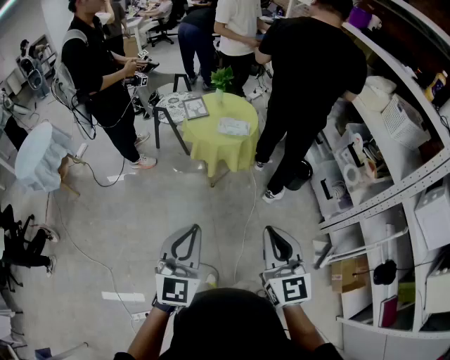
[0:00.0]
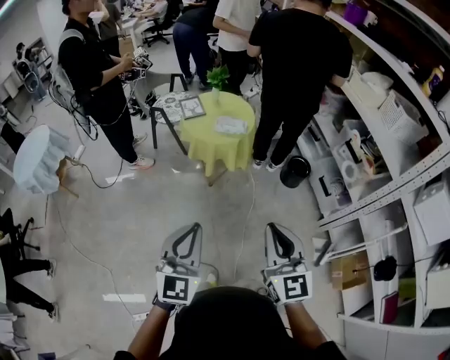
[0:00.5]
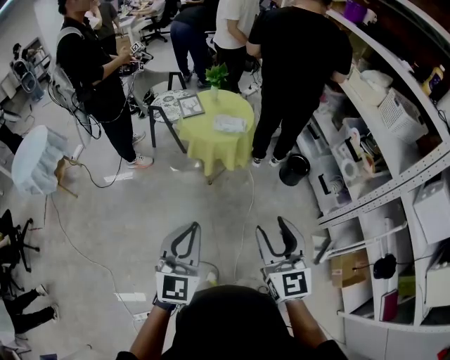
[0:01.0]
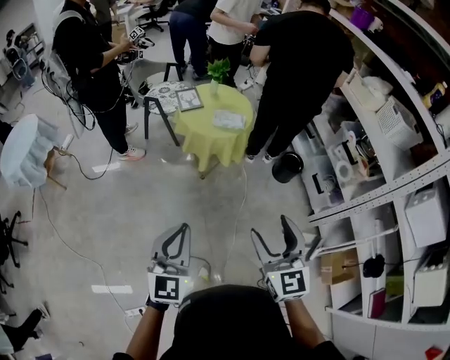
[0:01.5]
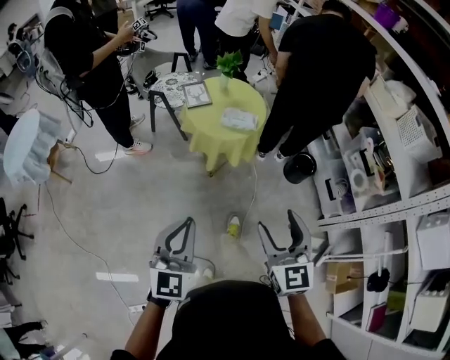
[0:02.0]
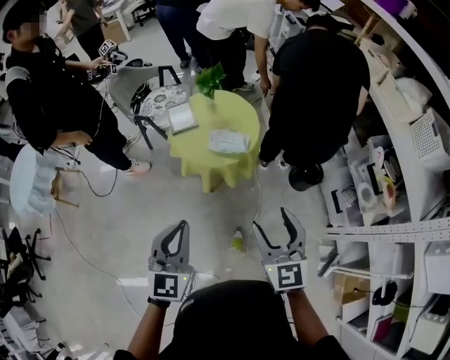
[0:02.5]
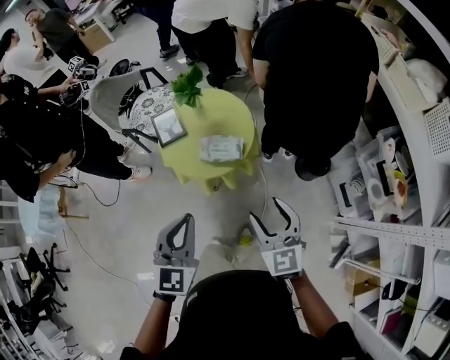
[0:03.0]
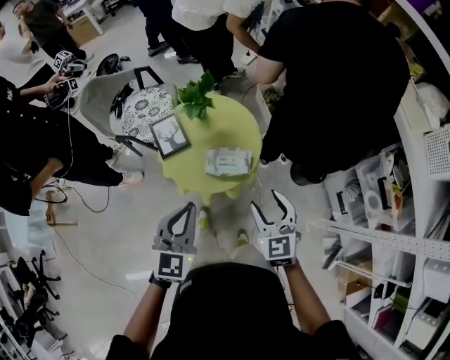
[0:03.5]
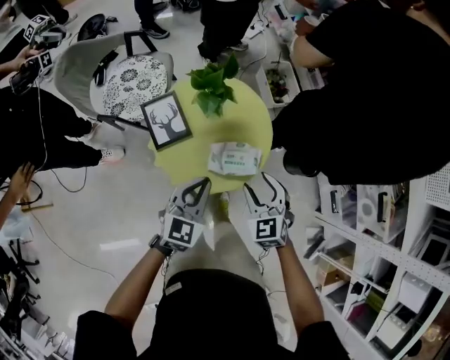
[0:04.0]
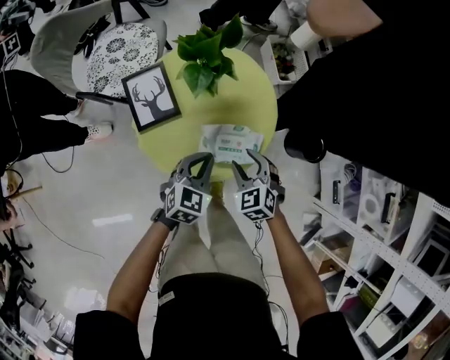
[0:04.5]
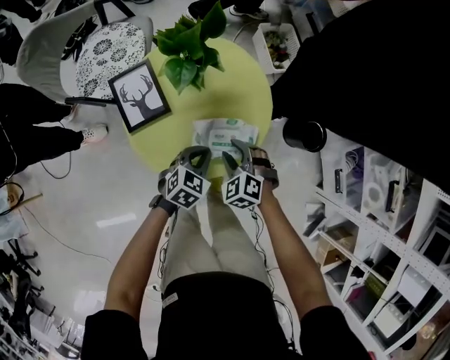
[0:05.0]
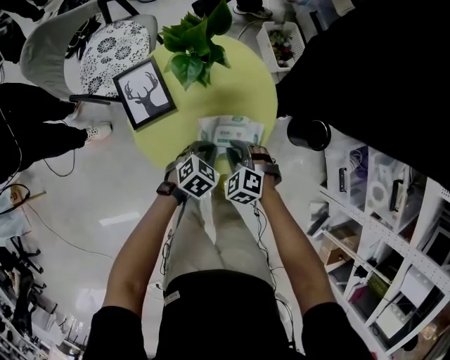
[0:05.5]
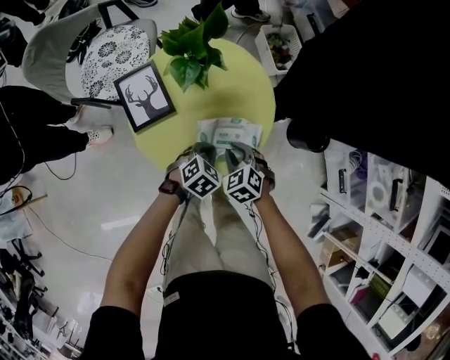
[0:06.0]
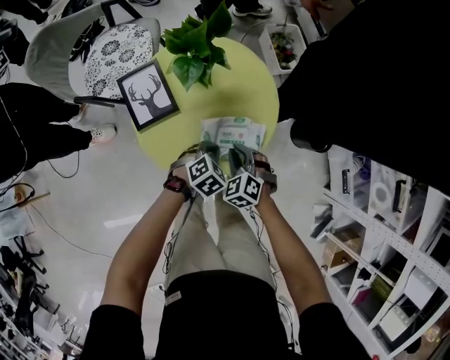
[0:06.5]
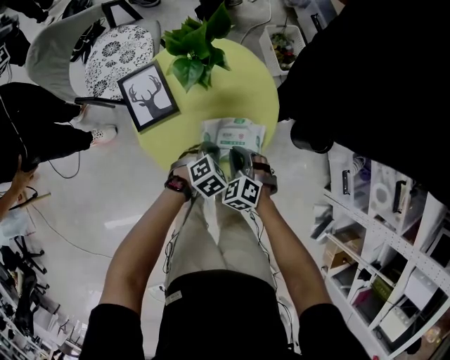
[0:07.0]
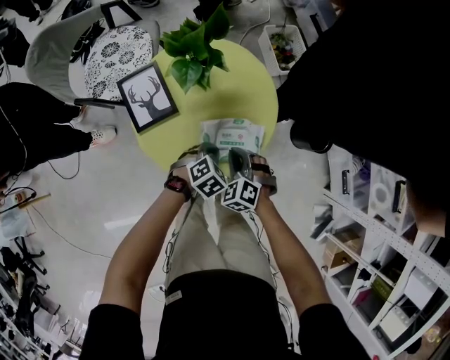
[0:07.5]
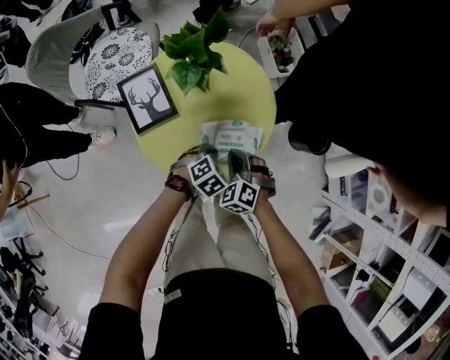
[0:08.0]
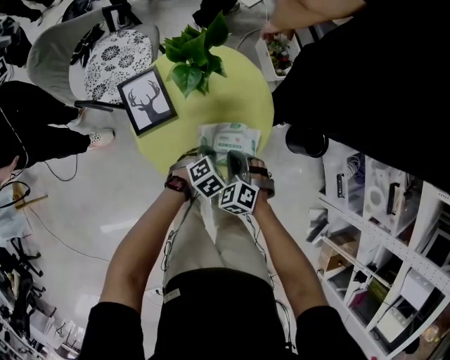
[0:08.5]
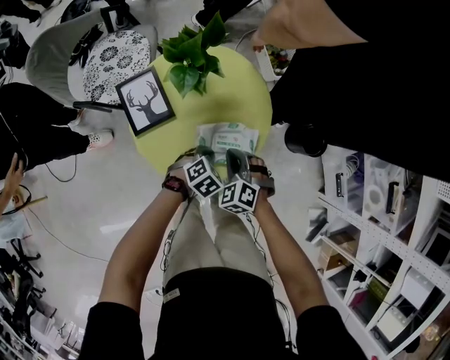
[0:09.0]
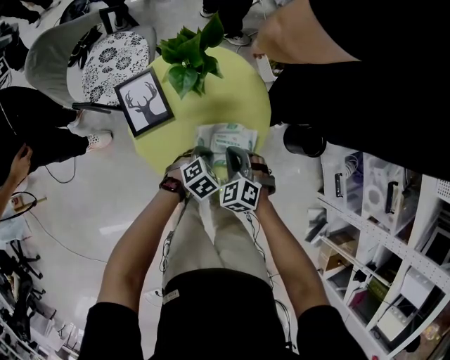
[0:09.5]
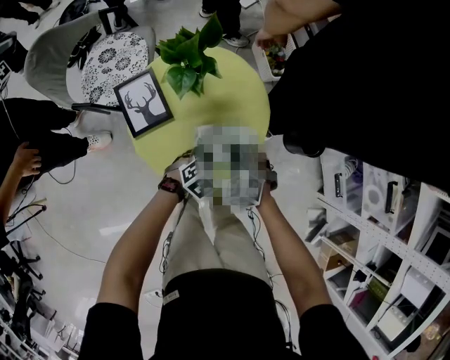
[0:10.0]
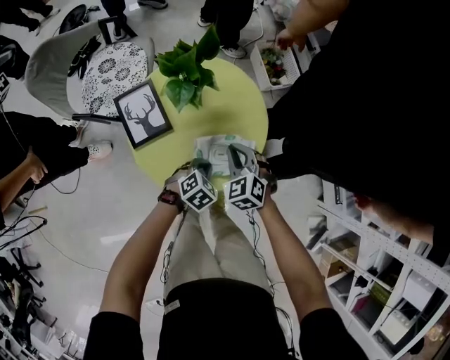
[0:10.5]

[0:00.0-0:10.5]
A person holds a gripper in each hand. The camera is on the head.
0:00.0 to 0:02.0: The left gripper shifts approximately 15 cm forward and to the left. The right gripper goes some 15 cm forward, and opens its fingers.
0:02.0 to 0:04.0: The two grippers travel together, forward, roughly 60 cm. The left gripper swivels about 30 degrees; the right gripper moves downward, about 25 cm, and swivels some 30 degrees.
0:04.0 to 0:06.5: The grippers both shift downward by about 20 cm. The left gripper tilts its fingers approximately 40 degrees downward. Meanwhile the right gripper closes up.
0:06.5 to 0:08.5: The grippers make only small movements.
0:08.5 to 0:10.5: The right gripper heads forward, covering about 5 cm.

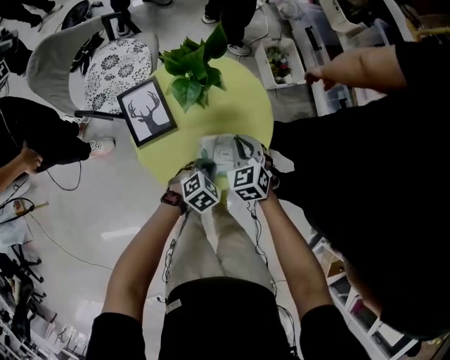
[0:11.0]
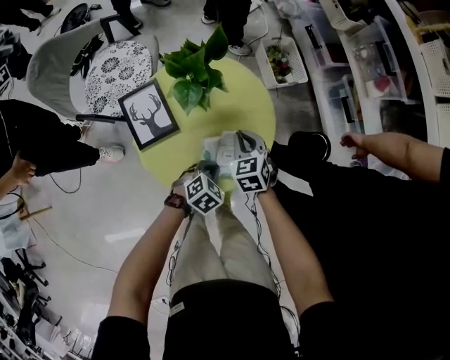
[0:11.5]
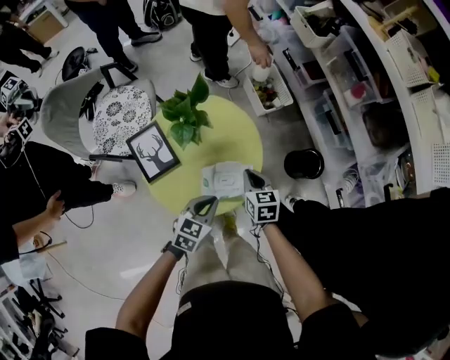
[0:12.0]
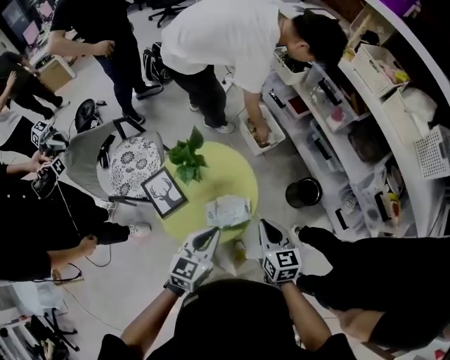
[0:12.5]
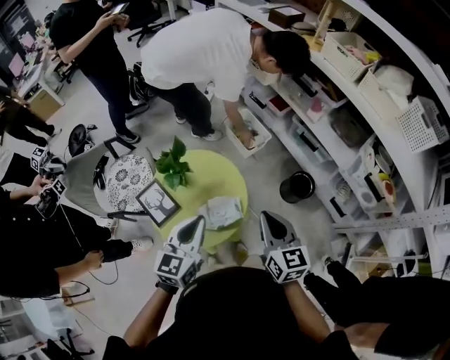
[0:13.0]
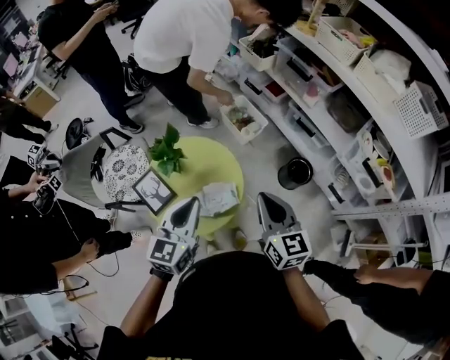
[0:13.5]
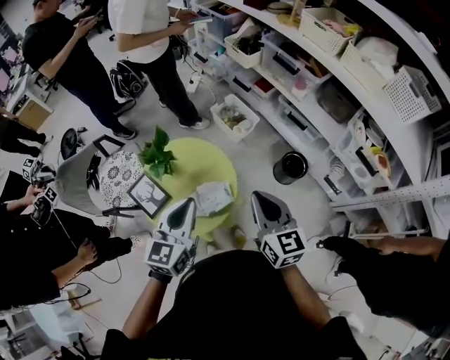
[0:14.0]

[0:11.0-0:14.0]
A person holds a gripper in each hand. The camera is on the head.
0:11.0 to 0:12.5: The left gripper shifts roughly 30 cm upward, and angles its fingers upward, by some 40 degrees, while the right gripper heads upward, to the right and backward, covering roughly 25 cm, and rotates around the line of its fingers by approximately 40 degrees, clockwise from behind.
0:12.5 to 0:14.0: The right gripper goes some 15 cm upward and to the right; the left gripper heads upward, covering about 10 cm.

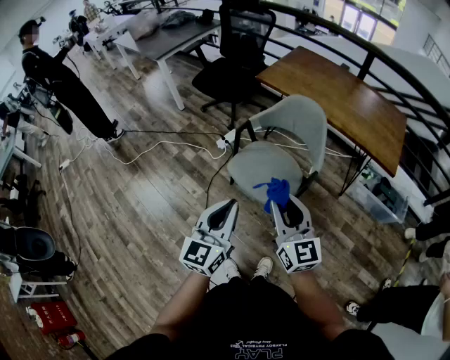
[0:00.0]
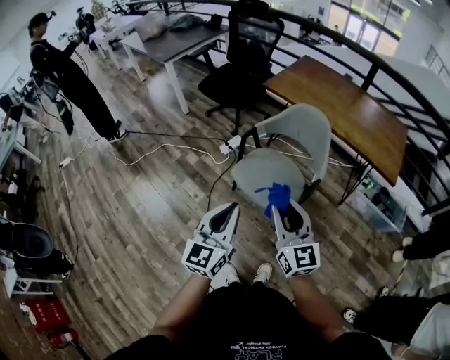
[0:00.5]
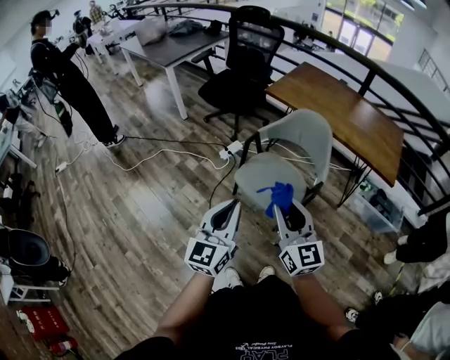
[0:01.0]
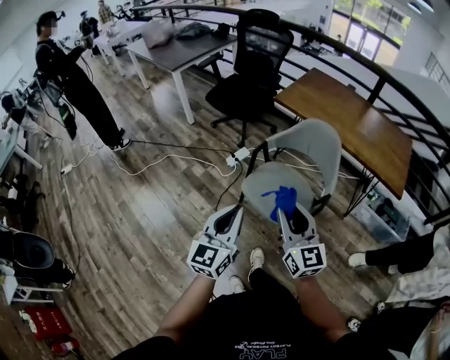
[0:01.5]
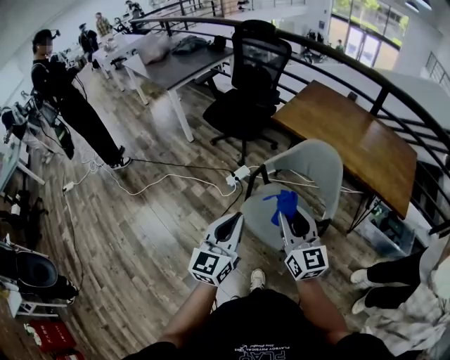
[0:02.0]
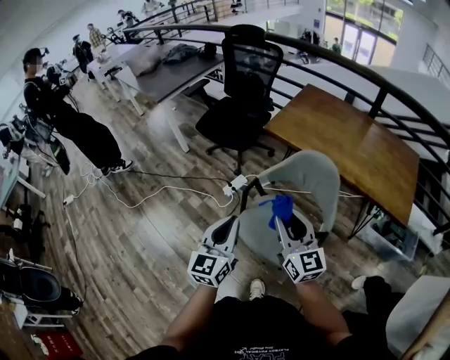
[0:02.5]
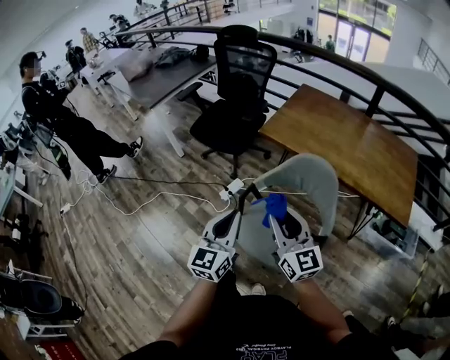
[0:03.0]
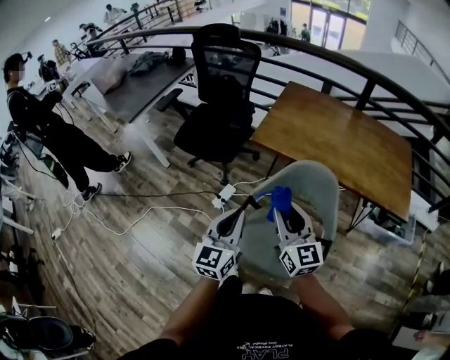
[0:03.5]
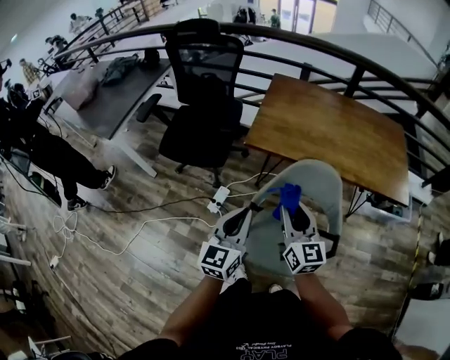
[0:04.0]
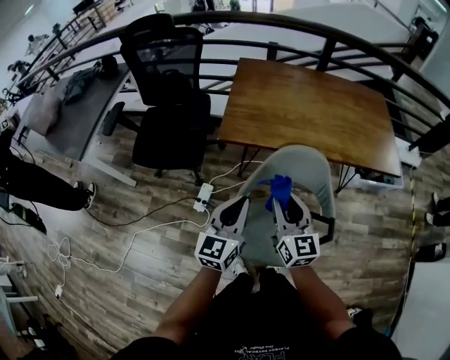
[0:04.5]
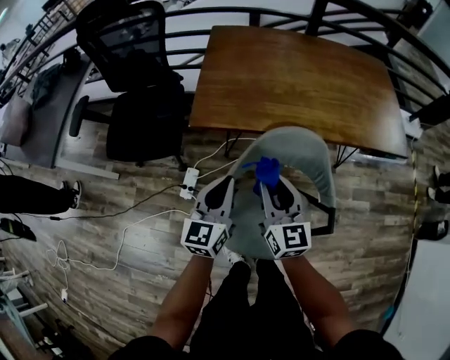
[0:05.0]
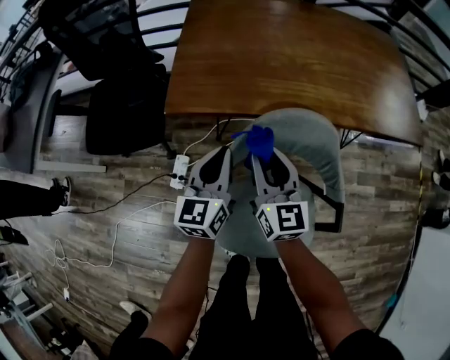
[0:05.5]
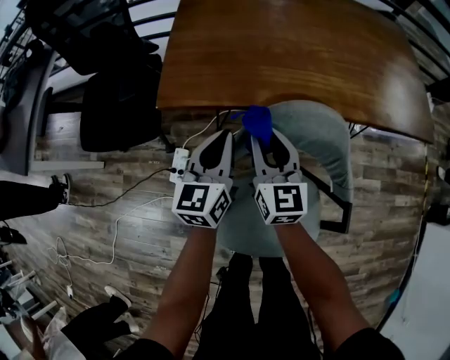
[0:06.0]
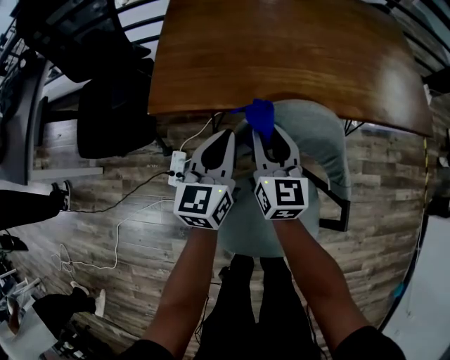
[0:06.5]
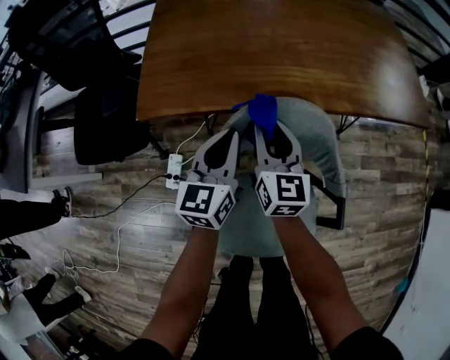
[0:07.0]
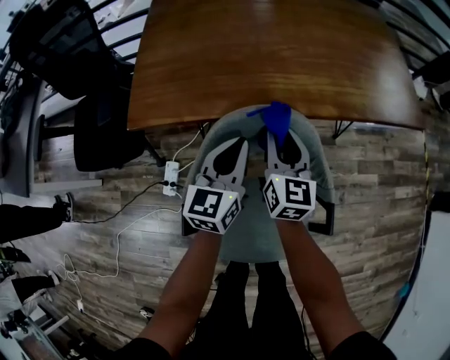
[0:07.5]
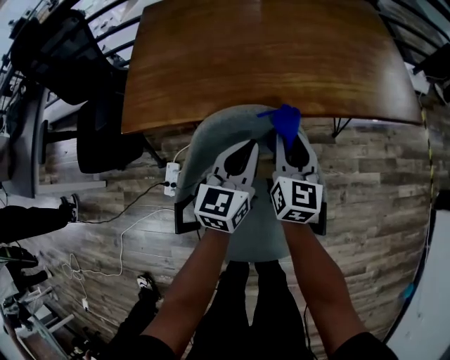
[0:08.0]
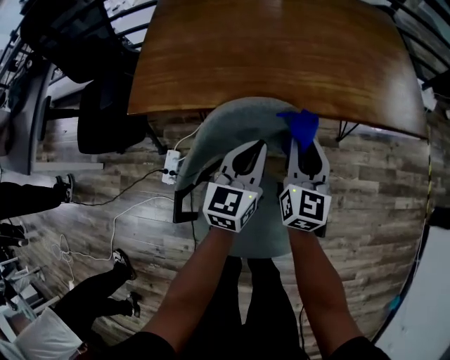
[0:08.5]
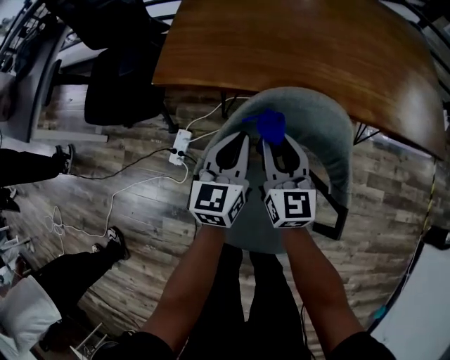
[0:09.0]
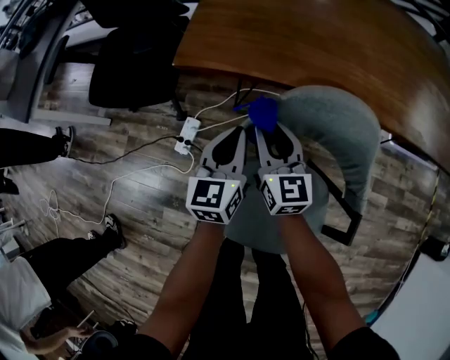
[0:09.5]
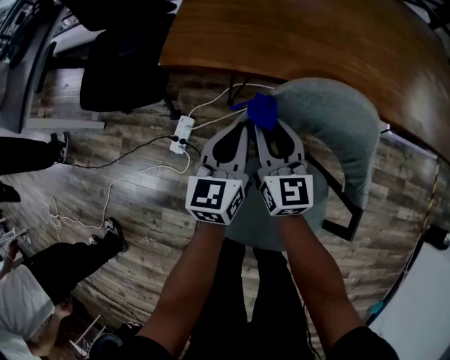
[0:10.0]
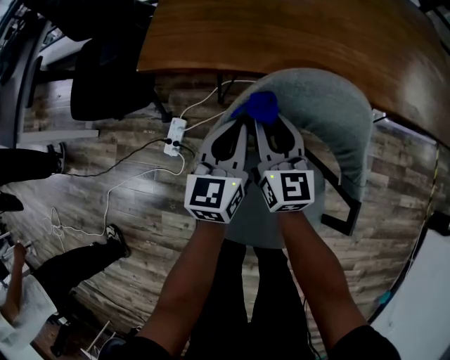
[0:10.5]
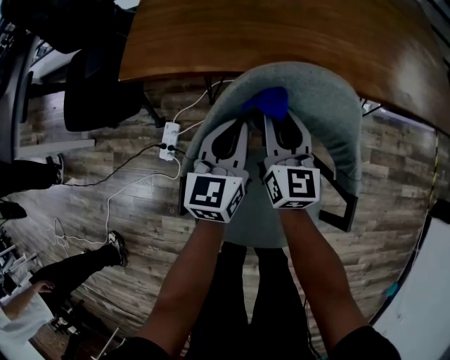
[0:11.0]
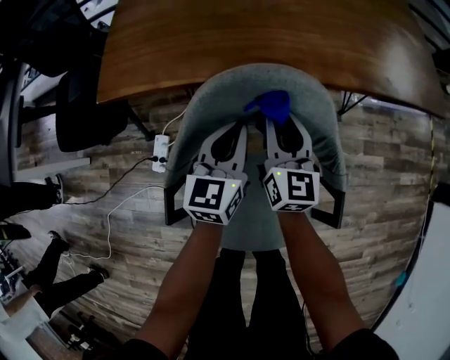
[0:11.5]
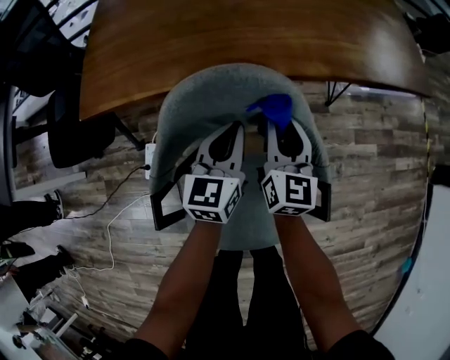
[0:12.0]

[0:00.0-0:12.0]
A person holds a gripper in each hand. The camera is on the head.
0:00.0 to 0:02.0: The left gripper goes some 15 cm forward and to the left. The right gripper is displaced forward by roughly 15 cm.
0:02.0 to 0:04.0: The left gripper ends up approximately 30 cm from where it was, and swivels about 20 degrees. Meanwhile the right gripper moves some 25 cm, and swivels about 30 degrees.
0:04.0 to 0:06.0: The left gripper moves forward and downward, some 35 cm. Meanwhile the right gripper heads downward and forward, covering roughly 30 cm.
0:06.0 to 0:08.0: Both grippers move to the right, some 20 cm.
0:08.0 to 0:10.0: The right gripper shifts by approximately 25 cm, and swivels about 30 degrees, while the left gripper shifts by some 20 cm, and rotates roughly 20 degrees.
0:10.0 to 0:12.0: Both grippers move to the right, some 20 cm. The right gripper turns by about 30 degrees.

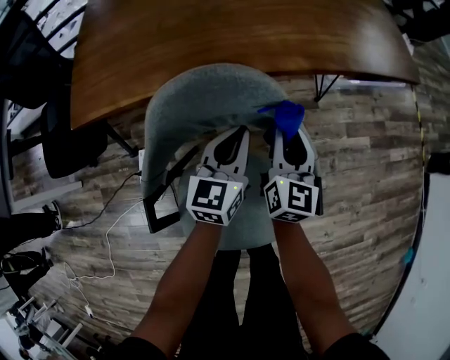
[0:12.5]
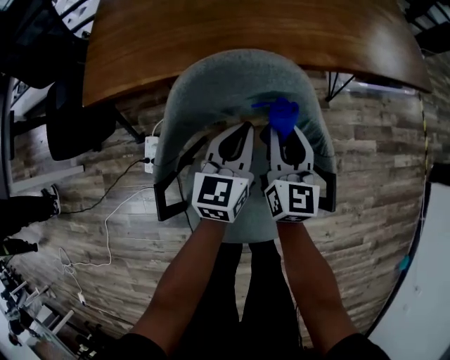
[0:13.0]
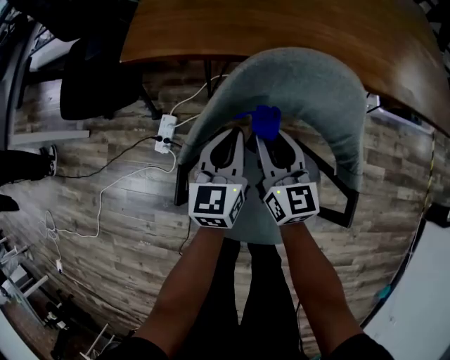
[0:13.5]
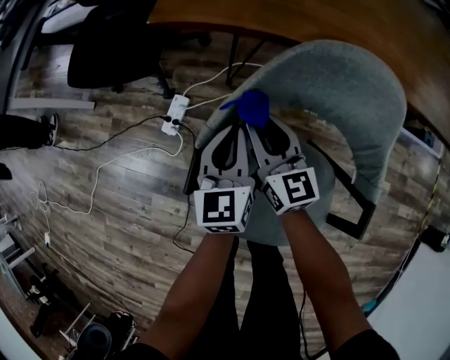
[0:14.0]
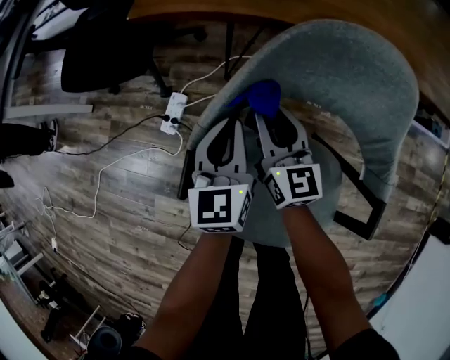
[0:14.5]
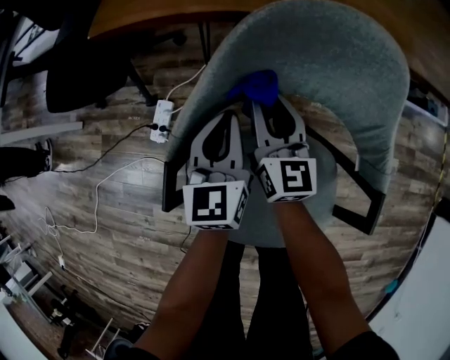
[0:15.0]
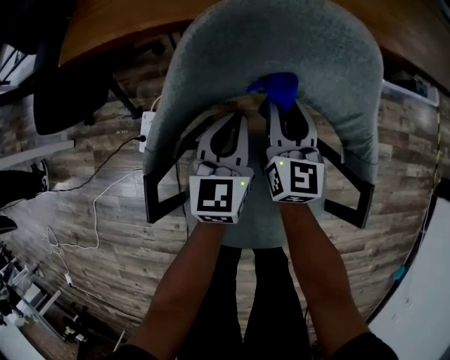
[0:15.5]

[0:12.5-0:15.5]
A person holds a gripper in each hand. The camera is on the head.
0:12.5 to 0:14.0: The left gripper shifts by roughly 25 cm, and turns by roughly 40 degrees. Meanwhile the right gripper shifts by roughly 30 cm, and swivels about 50 degrees.
0:14.0 to 0:15.5: The left gripper ends up roughly 15 cm from where it was, and swivels about 20 degrees. The right gripper ends up approximately 20 cm from where it was, and swivels some 30 degrees.
